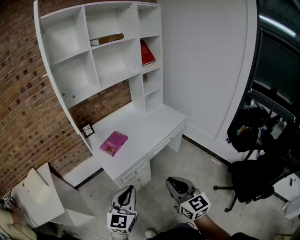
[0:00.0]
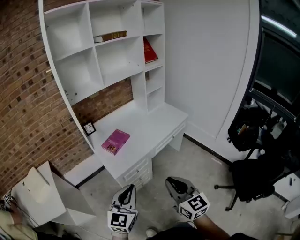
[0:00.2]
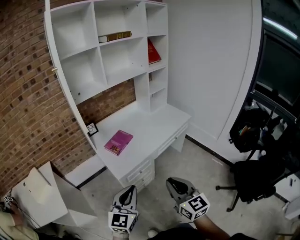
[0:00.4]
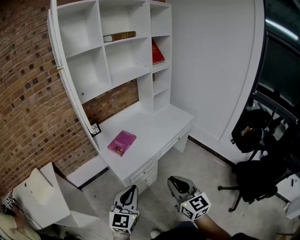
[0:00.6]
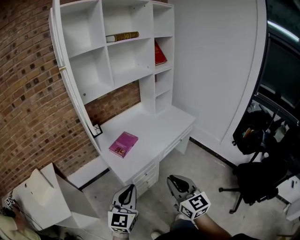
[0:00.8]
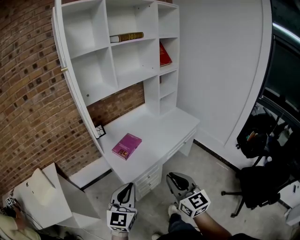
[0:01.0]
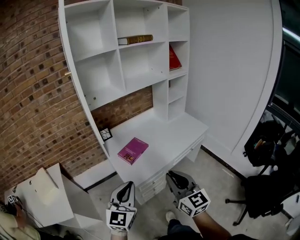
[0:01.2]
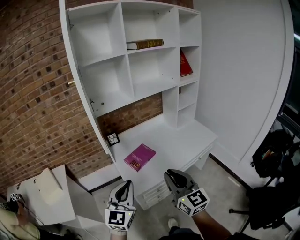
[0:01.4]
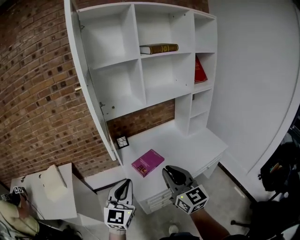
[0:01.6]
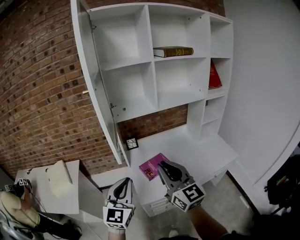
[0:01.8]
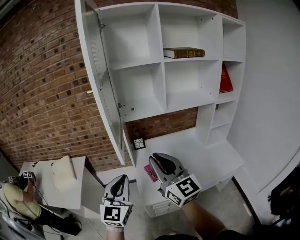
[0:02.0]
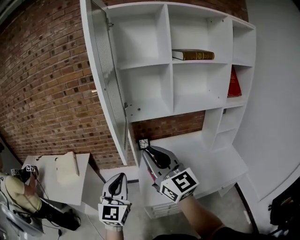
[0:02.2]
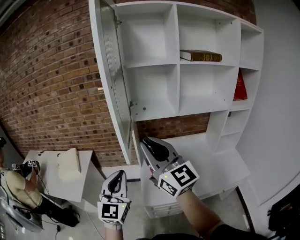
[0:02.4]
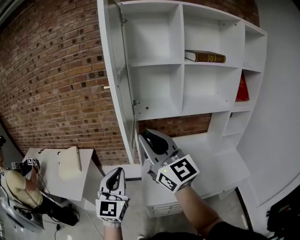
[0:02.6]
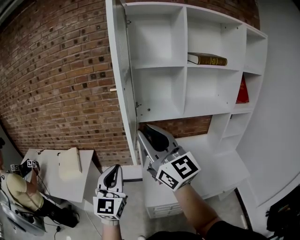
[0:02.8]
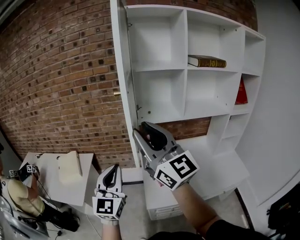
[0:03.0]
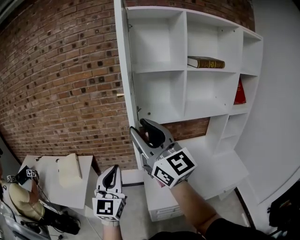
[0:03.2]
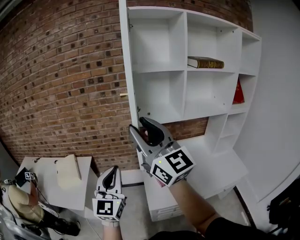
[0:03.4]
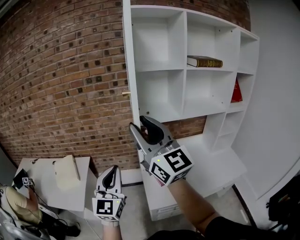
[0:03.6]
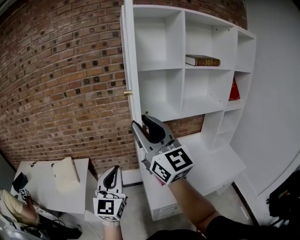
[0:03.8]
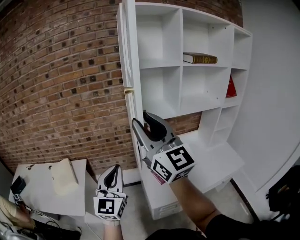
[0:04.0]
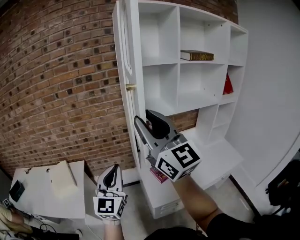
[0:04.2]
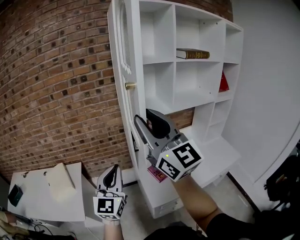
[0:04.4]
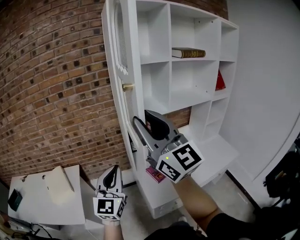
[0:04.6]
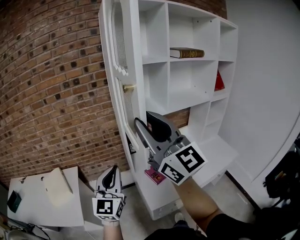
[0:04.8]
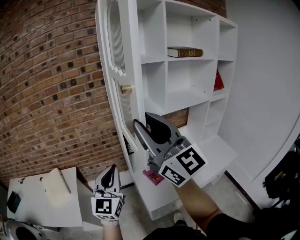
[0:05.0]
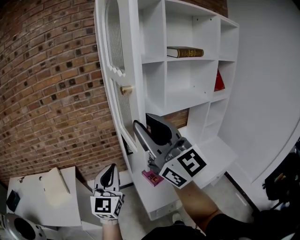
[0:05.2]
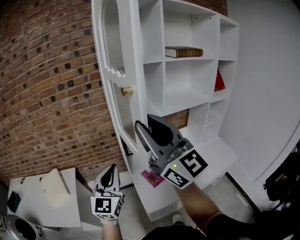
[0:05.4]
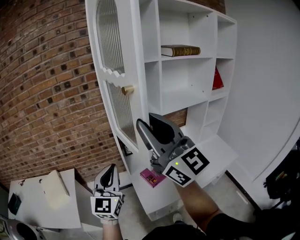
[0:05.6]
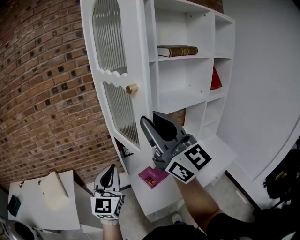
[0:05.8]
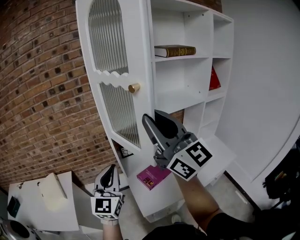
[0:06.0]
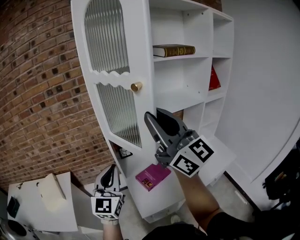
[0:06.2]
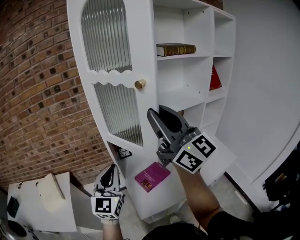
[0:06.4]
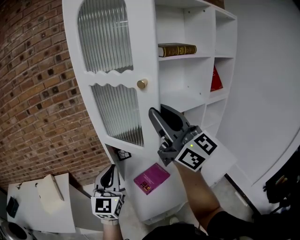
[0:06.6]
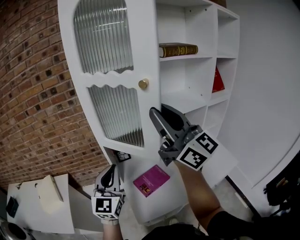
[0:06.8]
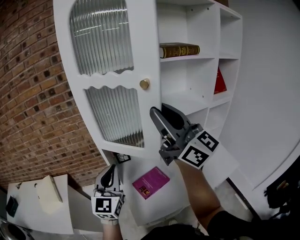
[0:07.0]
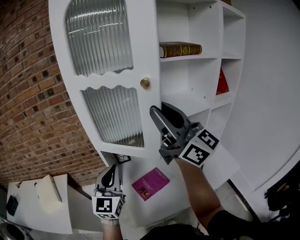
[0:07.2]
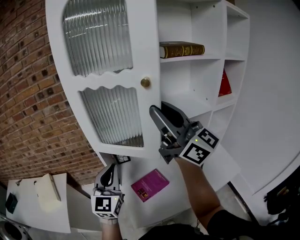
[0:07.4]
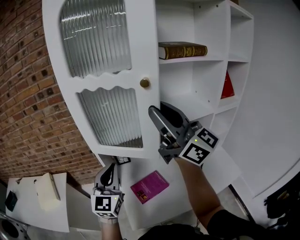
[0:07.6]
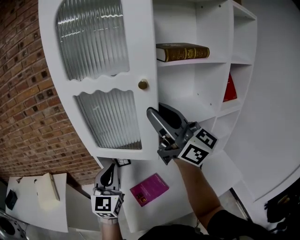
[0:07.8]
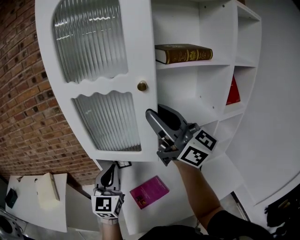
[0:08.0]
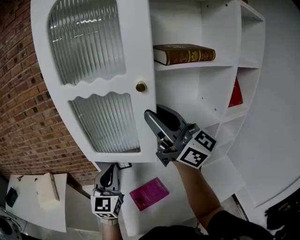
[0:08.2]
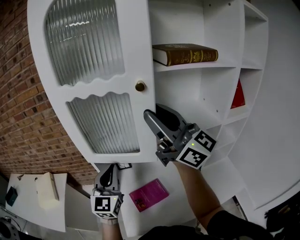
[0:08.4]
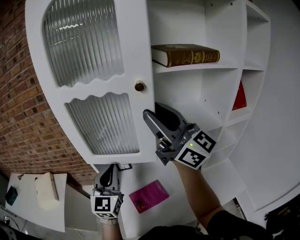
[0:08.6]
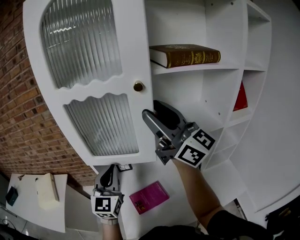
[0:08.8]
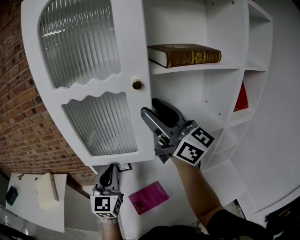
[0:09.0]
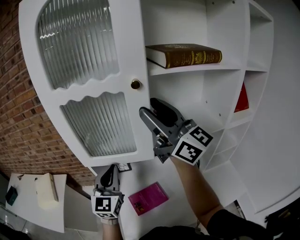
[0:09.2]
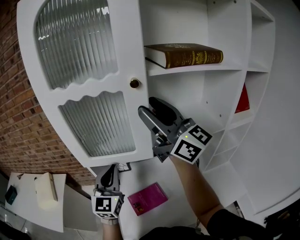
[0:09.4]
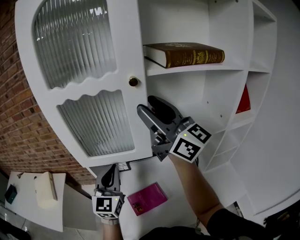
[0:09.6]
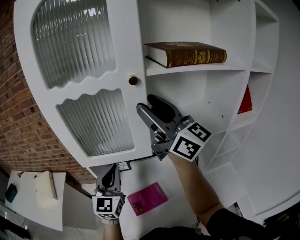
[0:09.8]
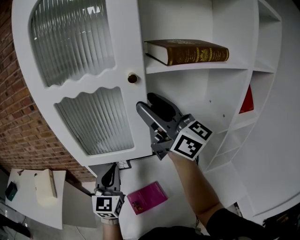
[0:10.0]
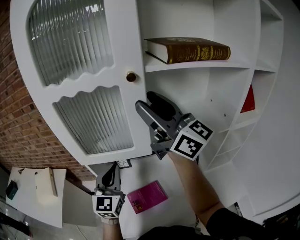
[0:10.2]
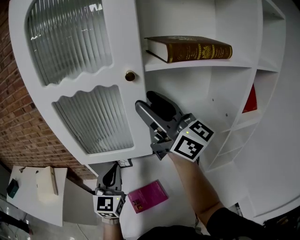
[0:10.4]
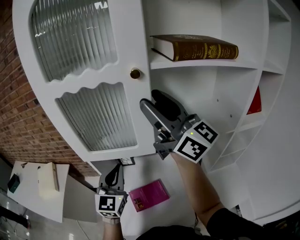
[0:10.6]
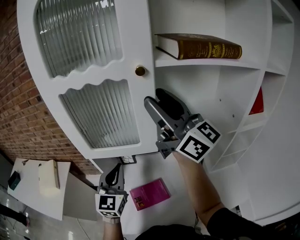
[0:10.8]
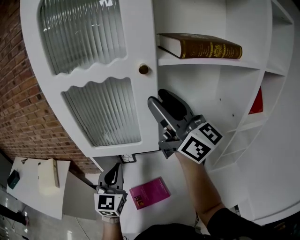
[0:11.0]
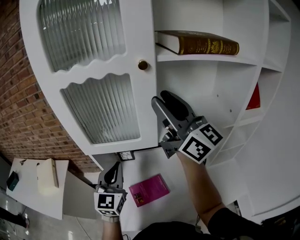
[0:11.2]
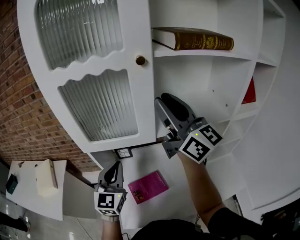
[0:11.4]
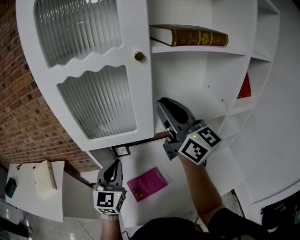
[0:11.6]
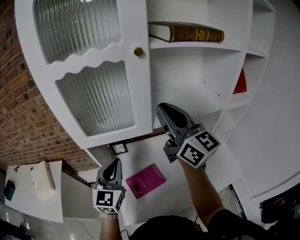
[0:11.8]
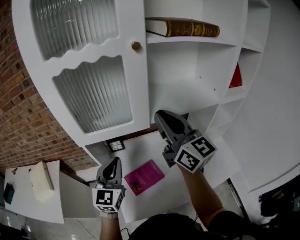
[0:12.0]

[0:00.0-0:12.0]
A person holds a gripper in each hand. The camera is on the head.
0:00.0 to 0:01.6: Both grippers move forward, to the left and upward, some 25 cm. The right gripper changes its angle by some 20 degrees. Meanwhile the left gripper rotates approximately 20 degrees.
0:01.6 to 0:03.0: The left gripper changes place by roughly 15 cm, and swivels approximately 20 degrees. Meanwhile the right gripper shifts roughly 20 cm upward, and changes its angle by approximately 30 degrees.
0:03.0 to 0:04.4: The left gripper goes approximately 5 cm forward.
0:04.4 to 0:06.0: The right gripper shifts roughly 10 cm to the right, while the left gripper shifts about 10 cm to the right and forward.
0:06.0 to 0:07.6: Both grippers move forward and to the right, roughly 15 cm.
0:07.6 to 0:09.0: The left gripper heads forward, covering some 5 cm. The right gripper shifts about 10 cm forward and to the right, and opens its fingers.
0:09.0 to 0:10.4: The grippers stay close to where they were, moving slightly.
0:10.4 to 0:12.0: The left gripper moves backward, about 5 cm. Meanwhile the right gripper moves downward and backward, approximately 15 cm, turns by about 30 degrees, and closes.

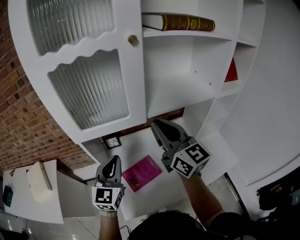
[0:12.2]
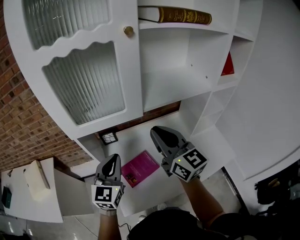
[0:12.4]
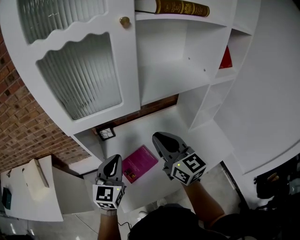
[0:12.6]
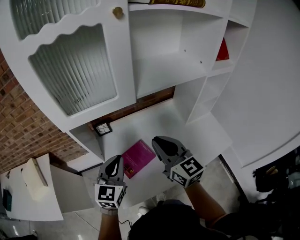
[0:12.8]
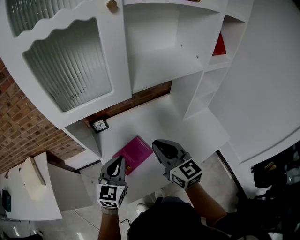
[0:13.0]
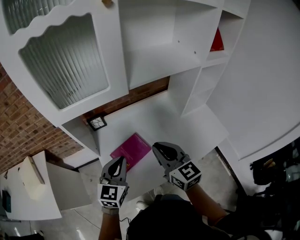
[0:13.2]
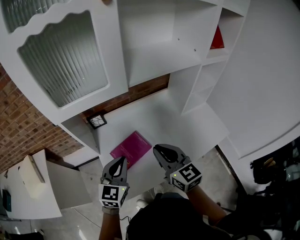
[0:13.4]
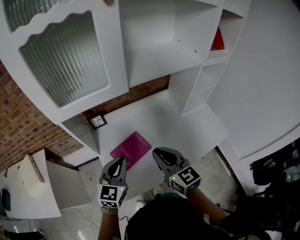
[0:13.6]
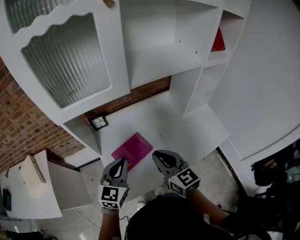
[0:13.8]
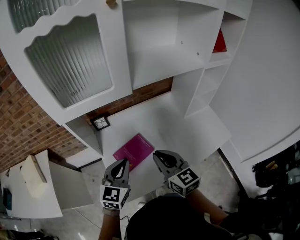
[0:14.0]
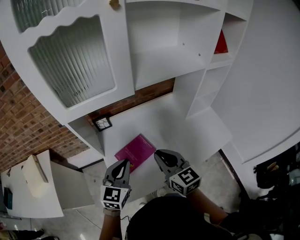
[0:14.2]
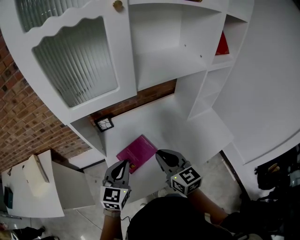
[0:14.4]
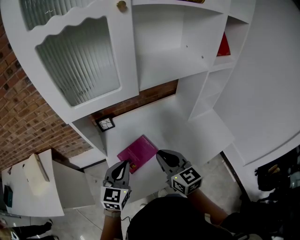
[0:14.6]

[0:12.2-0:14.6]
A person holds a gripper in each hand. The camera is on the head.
0:12.2 to 0:13.4: The right gripper is displaced downward and backward by roughly 25 cm, and turns by about 20 degrees; the left gripper goes roughly 15 cm downward and backward.
0:13.4 to 0:14.6: The grippers stay close to where they were, moving slightly.

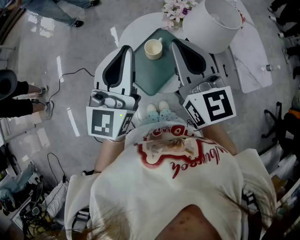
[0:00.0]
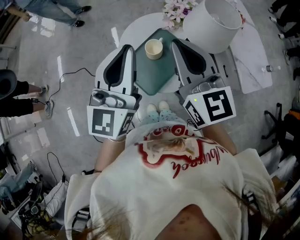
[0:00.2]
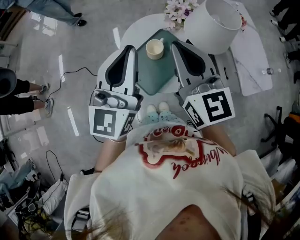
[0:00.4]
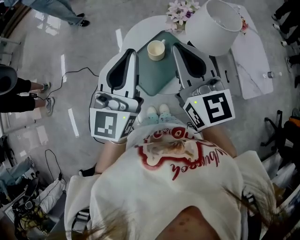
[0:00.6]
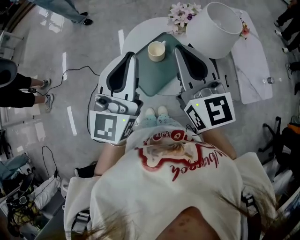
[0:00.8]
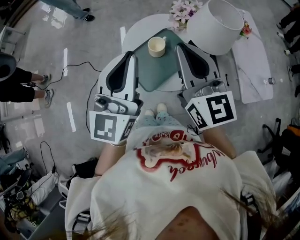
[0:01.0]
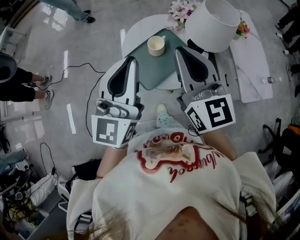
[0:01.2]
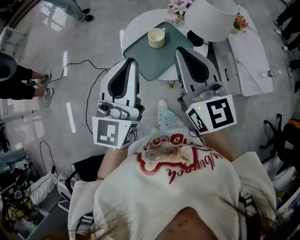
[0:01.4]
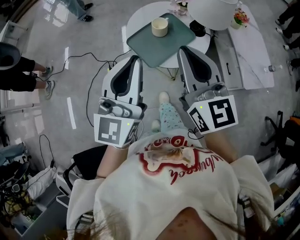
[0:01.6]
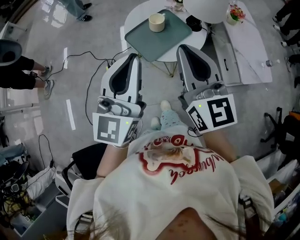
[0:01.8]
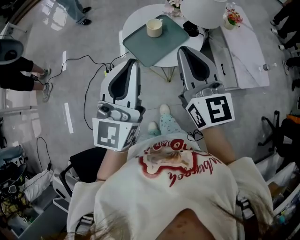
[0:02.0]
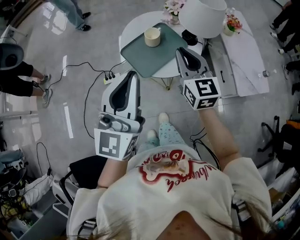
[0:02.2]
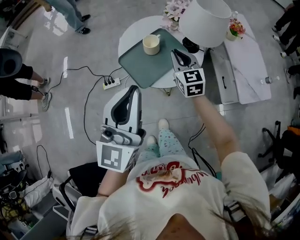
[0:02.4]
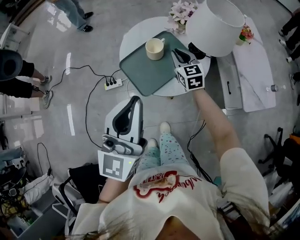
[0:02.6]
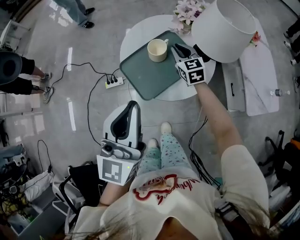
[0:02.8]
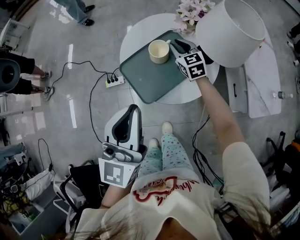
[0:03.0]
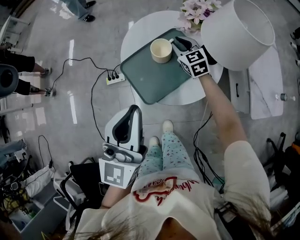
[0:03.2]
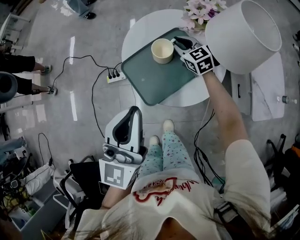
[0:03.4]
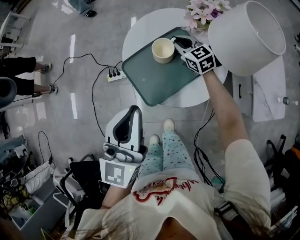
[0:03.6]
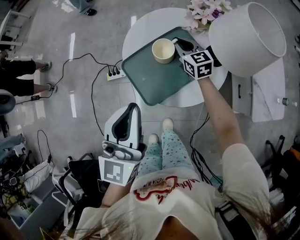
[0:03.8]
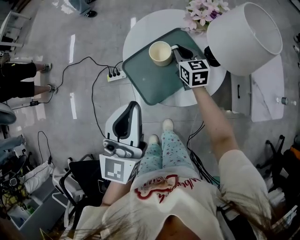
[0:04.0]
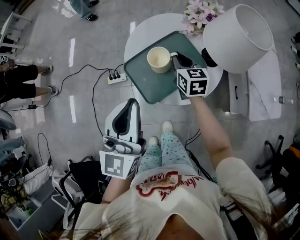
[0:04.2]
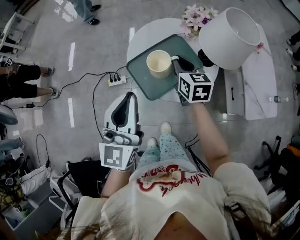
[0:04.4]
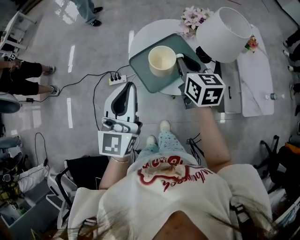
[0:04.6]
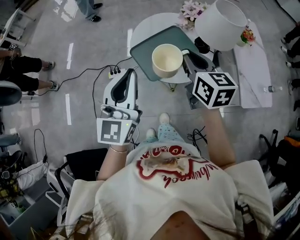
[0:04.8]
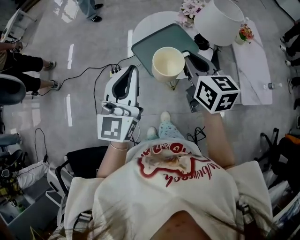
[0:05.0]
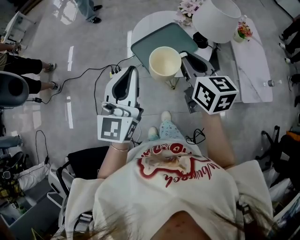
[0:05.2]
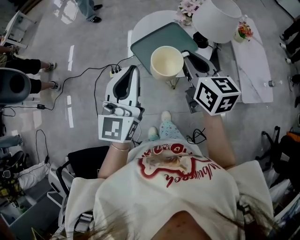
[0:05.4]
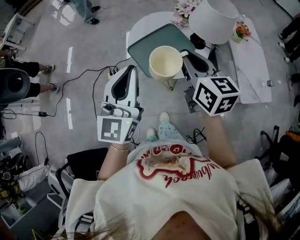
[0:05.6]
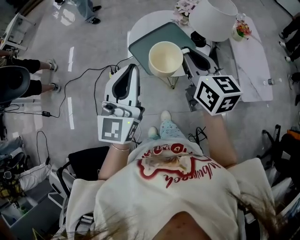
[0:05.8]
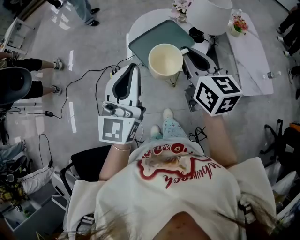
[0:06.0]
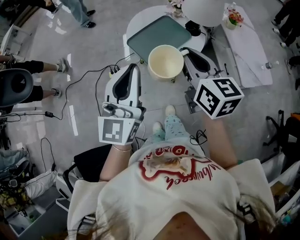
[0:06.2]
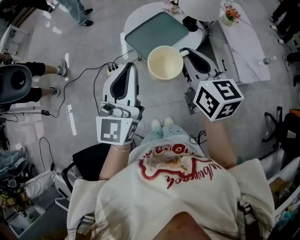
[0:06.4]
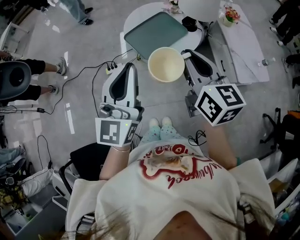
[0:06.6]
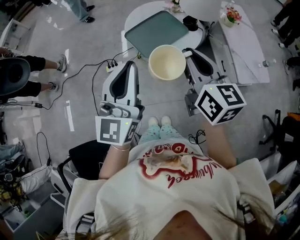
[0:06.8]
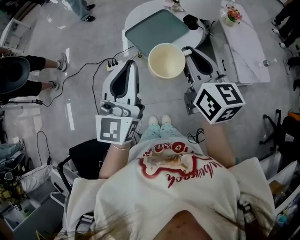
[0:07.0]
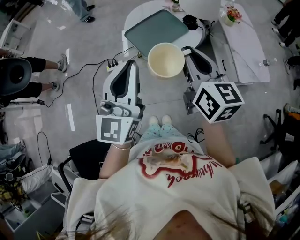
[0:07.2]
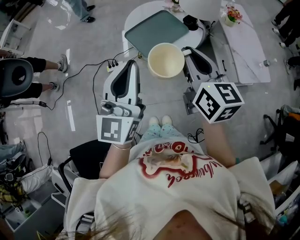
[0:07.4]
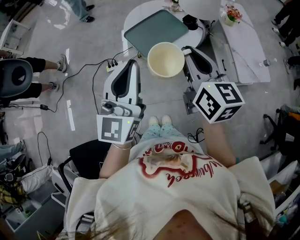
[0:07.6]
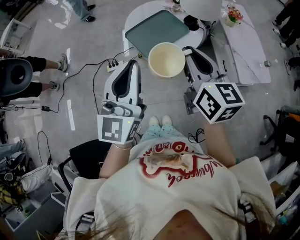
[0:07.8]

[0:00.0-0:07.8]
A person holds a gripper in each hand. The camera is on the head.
0:00.0 to 0:01.6: Both grippers move backward, some 20 cm.
0:01.6 to 0:03.2: The left gripper travels downward and forward by approximately 10 cm; the right gripper moves downward and forward, approximately 50 cm, and turns by about 30 degrees.
0:03.2 to 0:04.6: The left gripper heads to the left, covering some 5 cm; the right gripper moves upward and backward, about 25 cm, and rotates some 30 degrees.
0:04.6 to 0:06.2: The left gripper travels backward and upward by about 15 cm; the right gripper travels backward and upward by about 20 cm.
0:06.2 to 0:07.8: The grippers move only a little.

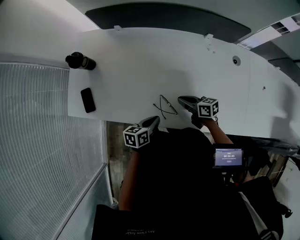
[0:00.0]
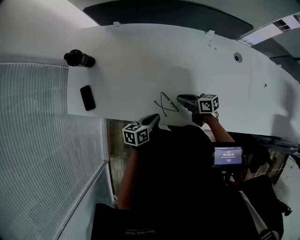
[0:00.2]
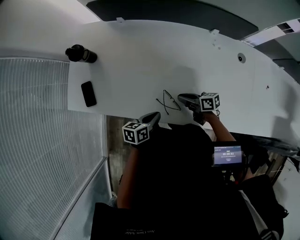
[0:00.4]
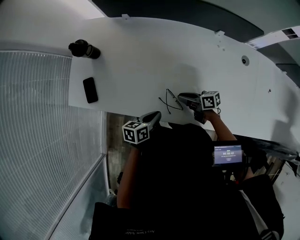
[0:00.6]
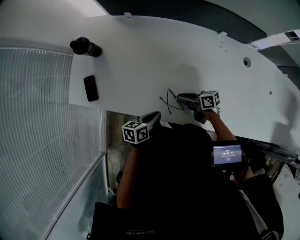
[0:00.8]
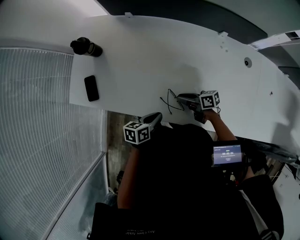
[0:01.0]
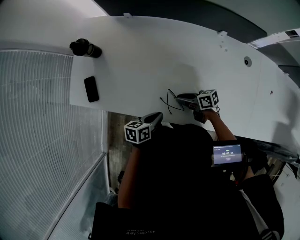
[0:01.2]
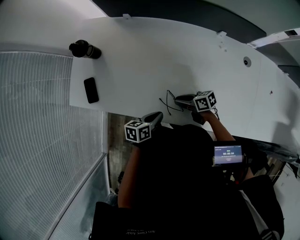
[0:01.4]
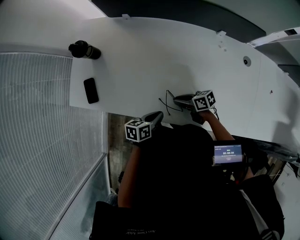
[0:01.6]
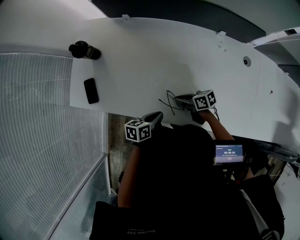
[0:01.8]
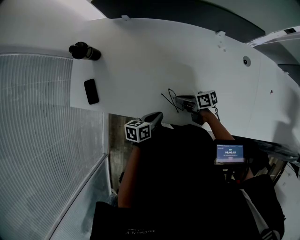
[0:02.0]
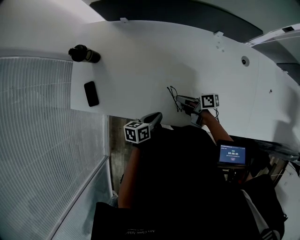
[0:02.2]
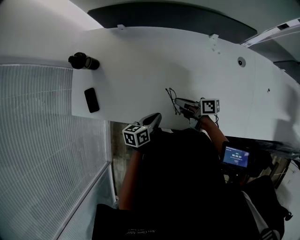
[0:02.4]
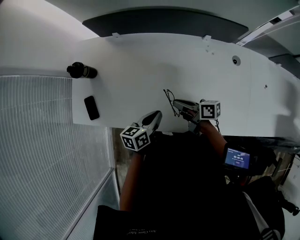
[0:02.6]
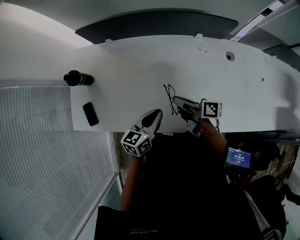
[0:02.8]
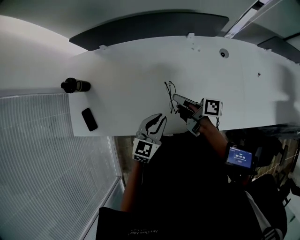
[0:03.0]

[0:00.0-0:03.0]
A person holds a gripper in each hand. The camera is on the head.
0:01.6 to 0:03.0: The left gripper heads upward, covering roughly 15 cm, and twists approximately 50 degrees clockwise, seen from behind.
